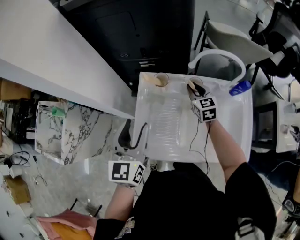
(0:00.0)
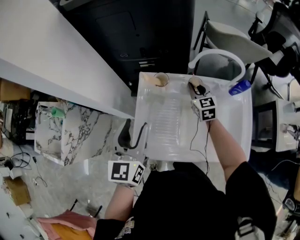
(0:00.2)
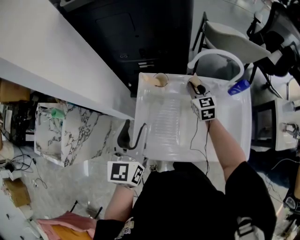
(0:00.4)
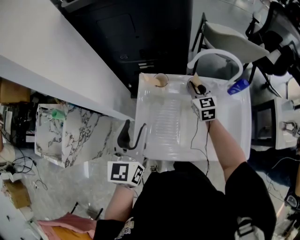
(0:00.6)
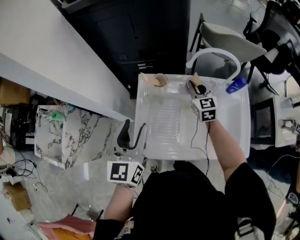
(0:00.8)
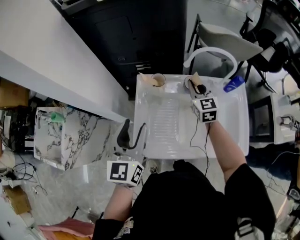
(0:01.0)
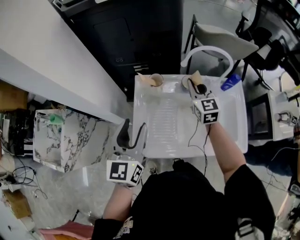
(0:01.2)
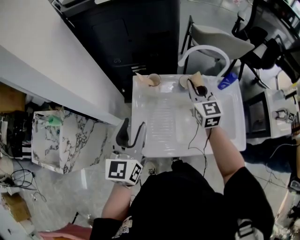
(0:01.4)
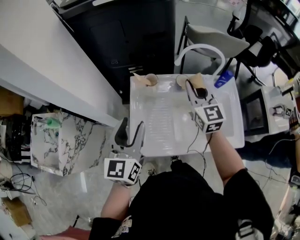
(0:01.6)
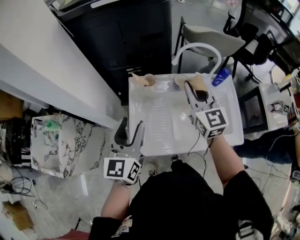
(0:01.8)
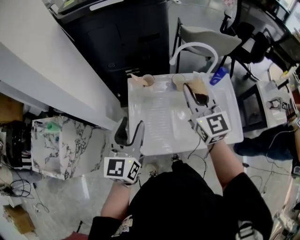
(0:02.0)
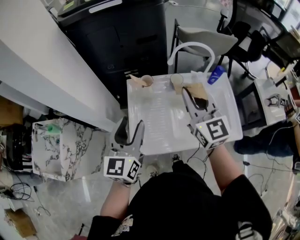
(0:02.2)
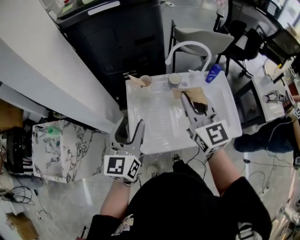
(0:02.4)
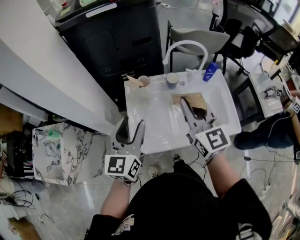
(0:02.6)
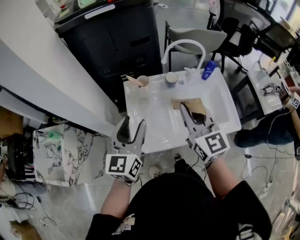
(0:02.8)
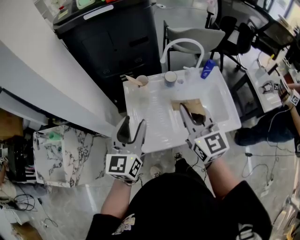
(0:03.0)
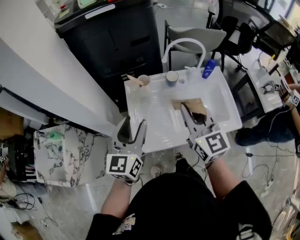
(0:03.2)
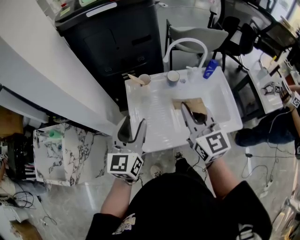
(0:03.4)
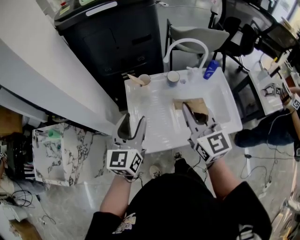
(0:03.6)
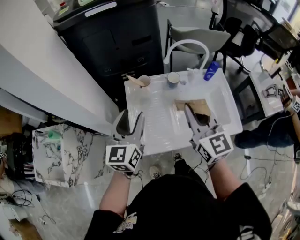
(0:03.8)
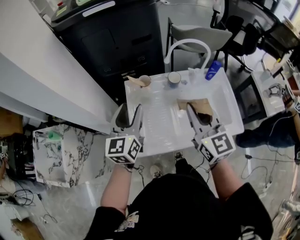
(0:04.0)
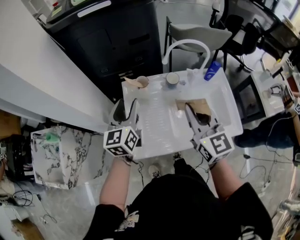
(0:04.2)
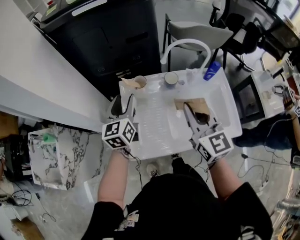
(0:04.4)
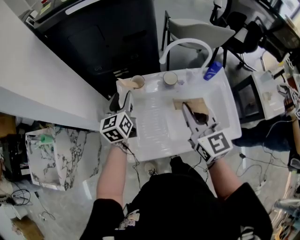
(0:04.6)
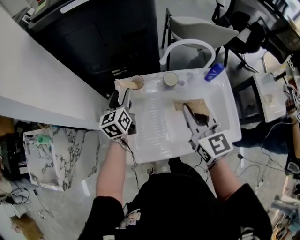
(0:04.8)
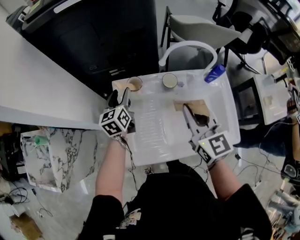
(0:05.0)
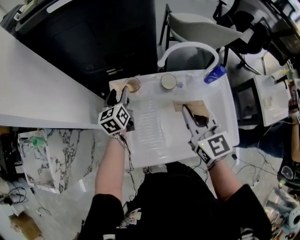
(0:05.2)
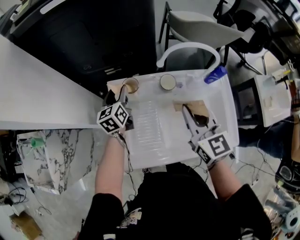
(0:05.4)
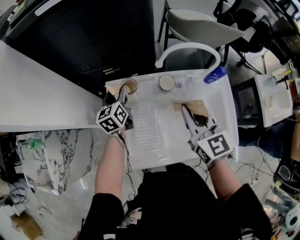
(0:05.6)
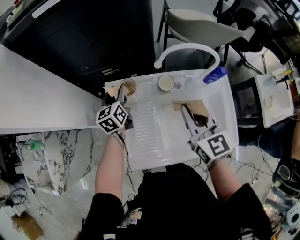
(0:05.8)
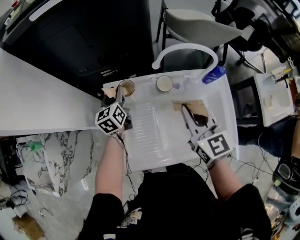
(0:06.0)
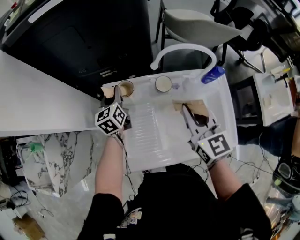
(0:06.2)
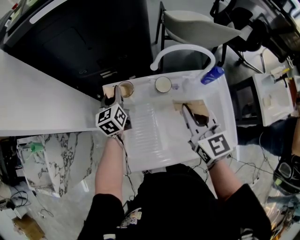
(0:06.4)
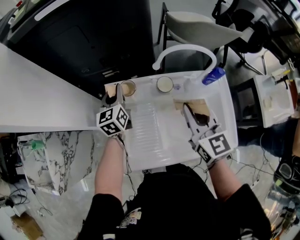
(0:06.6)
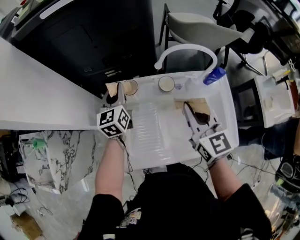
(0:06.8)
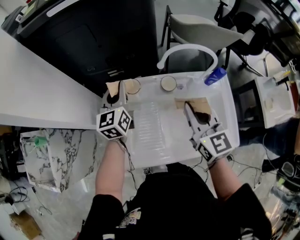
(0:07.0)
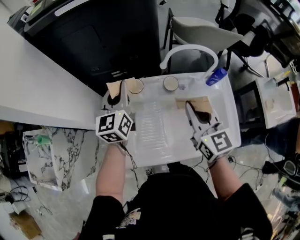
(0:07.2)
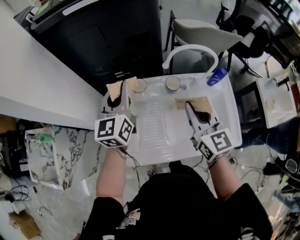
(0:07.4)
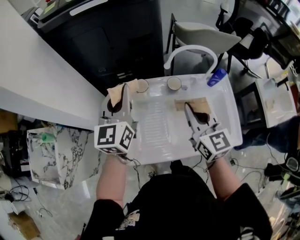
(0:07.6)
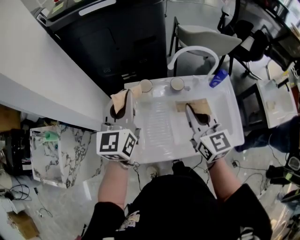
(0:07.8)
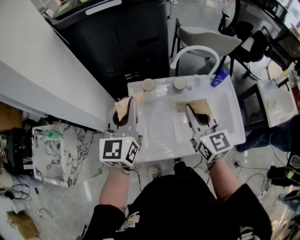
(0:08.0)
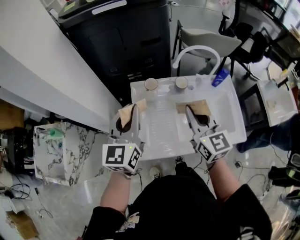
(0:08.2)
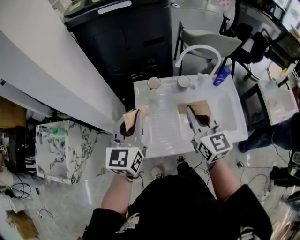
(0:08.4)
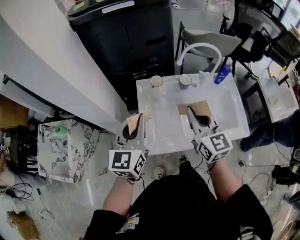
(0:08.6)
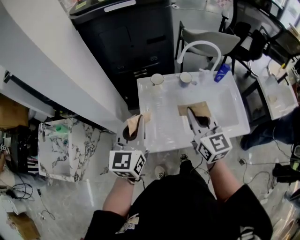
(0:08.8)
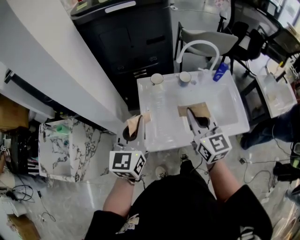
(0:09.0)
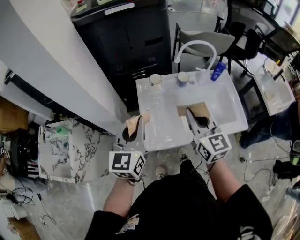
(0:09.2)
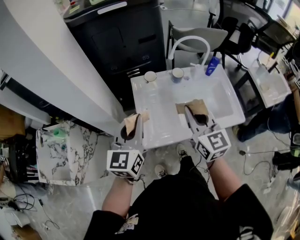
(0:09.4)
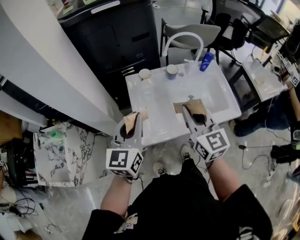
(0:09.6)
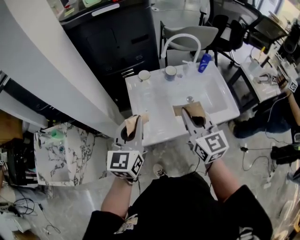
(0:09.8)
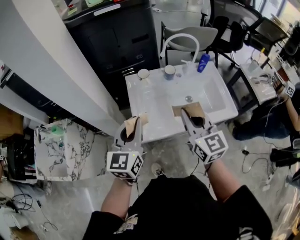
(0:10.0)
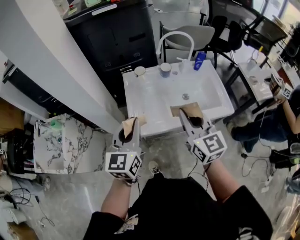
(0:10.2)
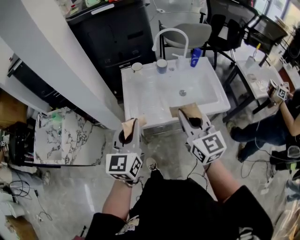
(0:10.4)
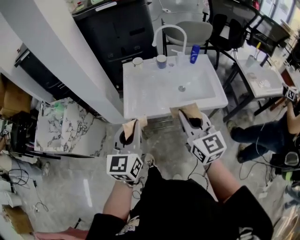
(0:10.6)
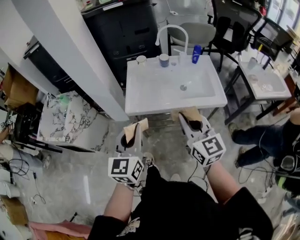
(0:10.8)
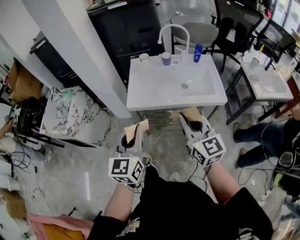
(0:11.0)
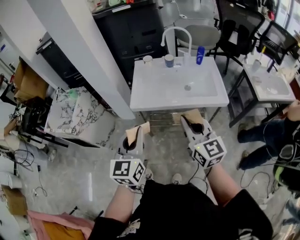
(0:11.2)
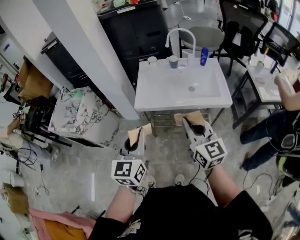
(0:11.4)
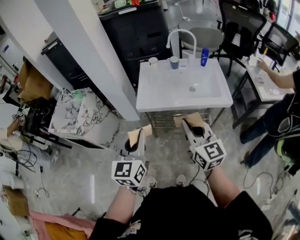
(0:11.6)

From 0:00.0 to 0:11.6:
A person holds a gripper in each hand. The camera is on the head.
From 0:00.0 to 0:01.4: The right gripper travels upward and backward by about 15 cm.
From 0:01.4 to 0:02.8: The left gripper ends up about 5 cm from where it was. Meanwhile the right gripper moves backward and upward, about 25 cm.
From 0:02.8 to 0:04.4: The left gripper shifts approximately 20 cm forward and downward. The right gripper moves forward, approximately 5 cm.
From 0:04.4 to 0:05.8: The left gripper heads forward and downward, covering roughly 20 cm. The right gripper goes roughly 10 cm forward and downward.
From 0:05.8 to 0:07.2: The left gripper moves upward, about 15 cm, turns by approximately 20 degrees, and closes up.
From 0:07.2 to 0:08.8: The right gripper travels backward and to the left by approximately 15 cm, while the left gripper goes about 25 cm backward.
From 0:08.8 to 0:10.2: Both grippers travel together backward, about 15 cm.
From 0:10.2 to 0:11.6: Both grippers travel together backward, roughly 25 cm.

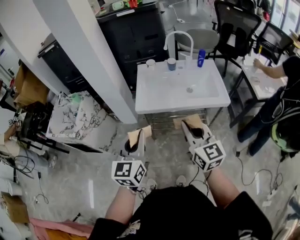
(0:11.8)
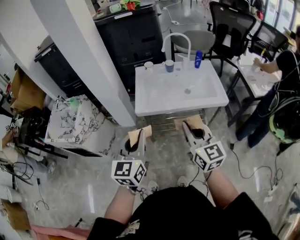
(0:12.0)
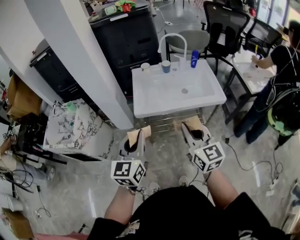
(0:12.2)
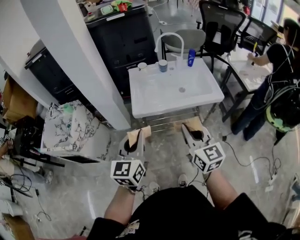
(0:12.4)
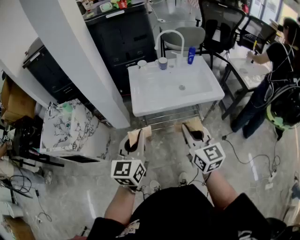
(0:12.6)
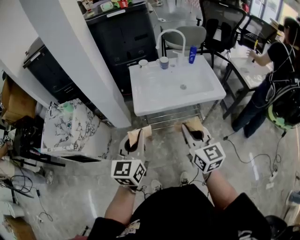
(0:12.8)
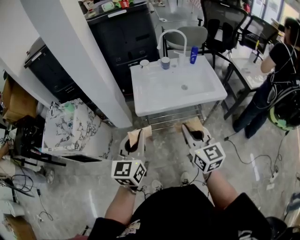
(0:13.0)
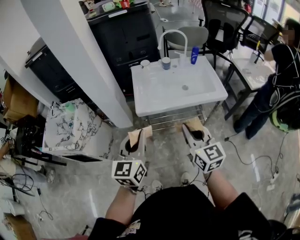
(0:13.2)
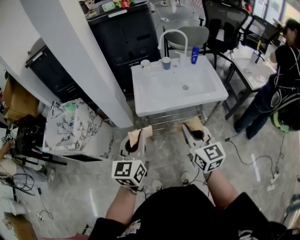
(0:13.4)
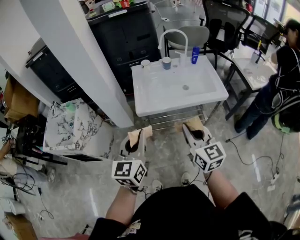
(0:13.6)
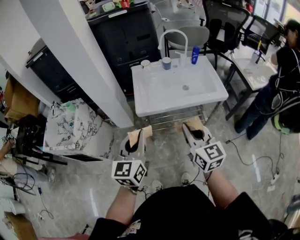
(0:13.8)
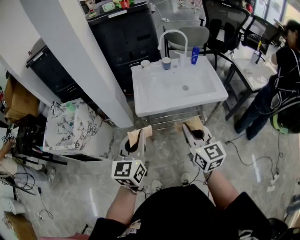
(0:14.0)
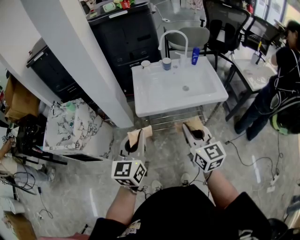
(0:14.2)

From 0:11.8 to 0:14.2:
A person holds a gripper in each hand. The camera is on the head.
From 0:11.8 to 0:13.0: The grippers both shift to the left by some 5 cm.
From 0:13.0 to 0:14.2: Both grippers stay about where they are.

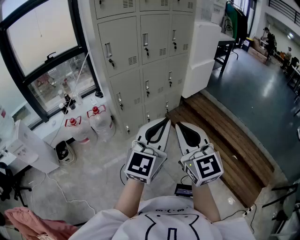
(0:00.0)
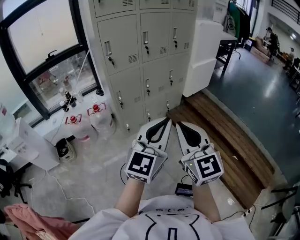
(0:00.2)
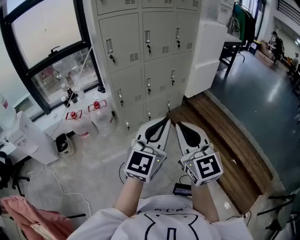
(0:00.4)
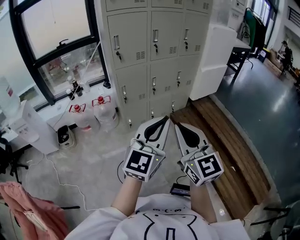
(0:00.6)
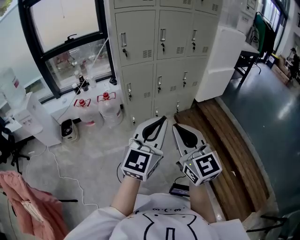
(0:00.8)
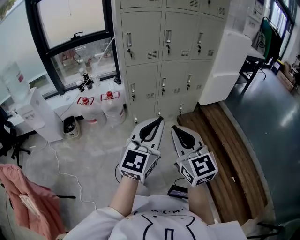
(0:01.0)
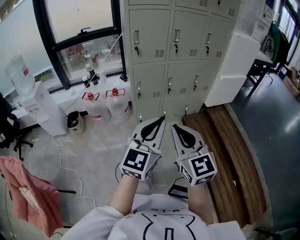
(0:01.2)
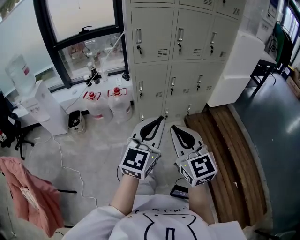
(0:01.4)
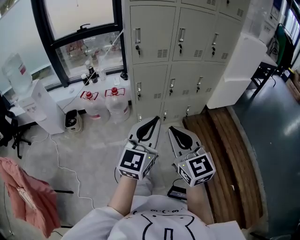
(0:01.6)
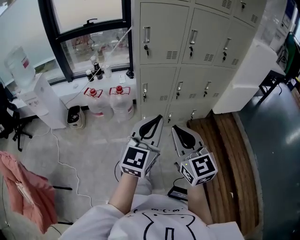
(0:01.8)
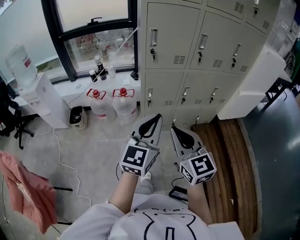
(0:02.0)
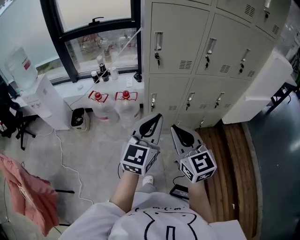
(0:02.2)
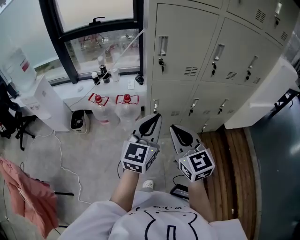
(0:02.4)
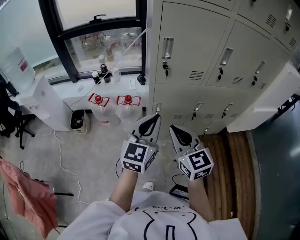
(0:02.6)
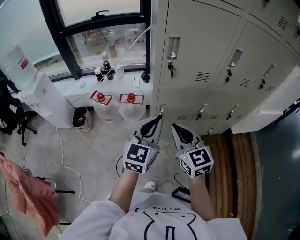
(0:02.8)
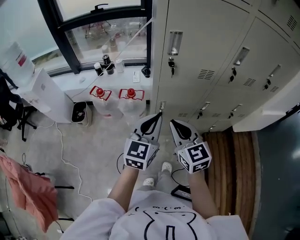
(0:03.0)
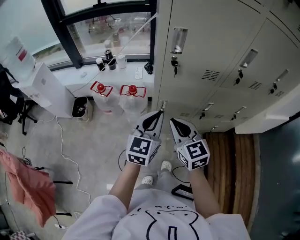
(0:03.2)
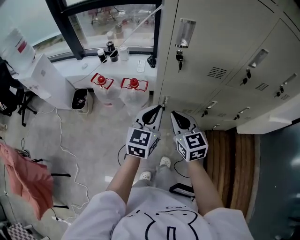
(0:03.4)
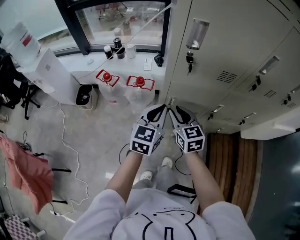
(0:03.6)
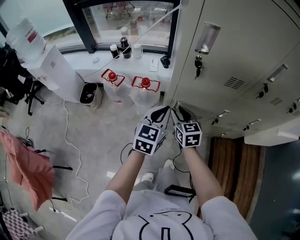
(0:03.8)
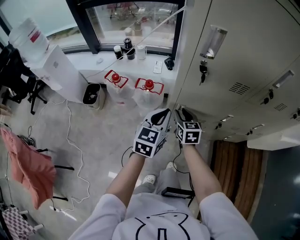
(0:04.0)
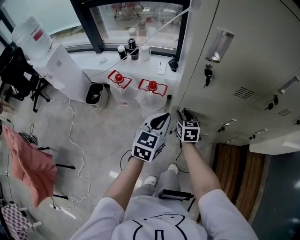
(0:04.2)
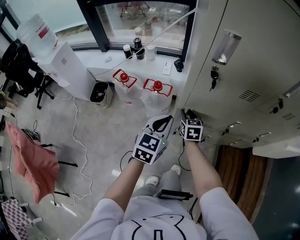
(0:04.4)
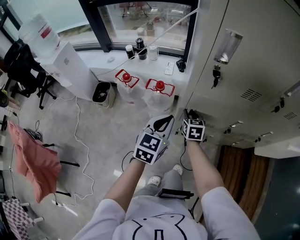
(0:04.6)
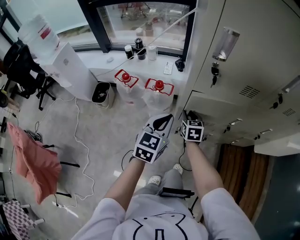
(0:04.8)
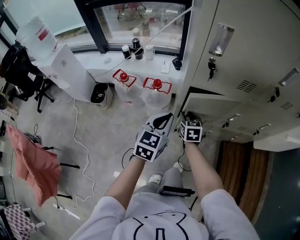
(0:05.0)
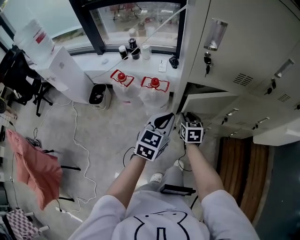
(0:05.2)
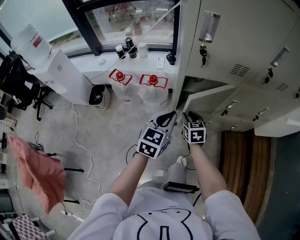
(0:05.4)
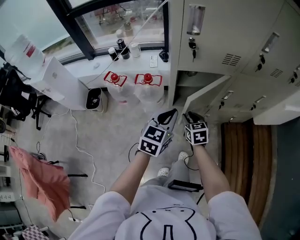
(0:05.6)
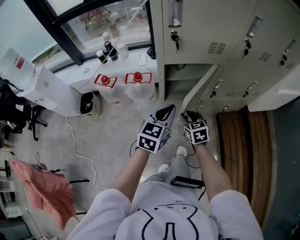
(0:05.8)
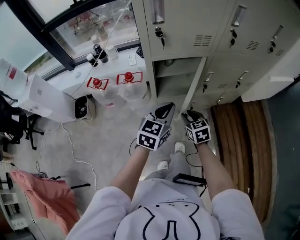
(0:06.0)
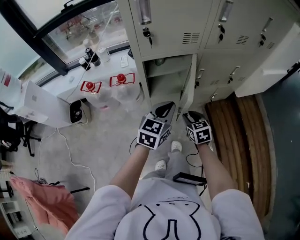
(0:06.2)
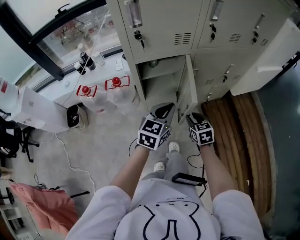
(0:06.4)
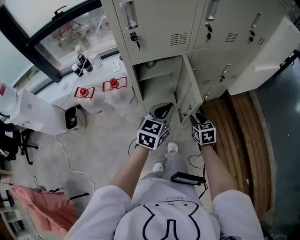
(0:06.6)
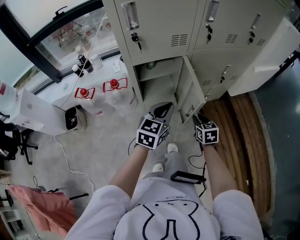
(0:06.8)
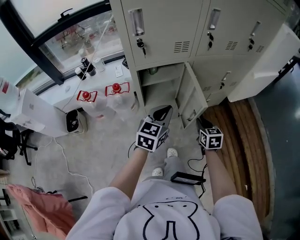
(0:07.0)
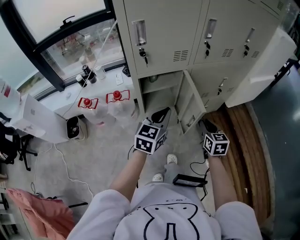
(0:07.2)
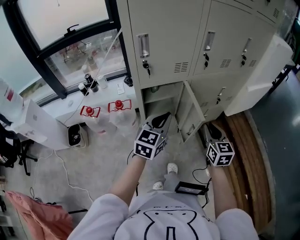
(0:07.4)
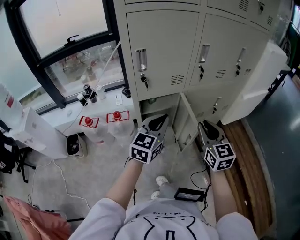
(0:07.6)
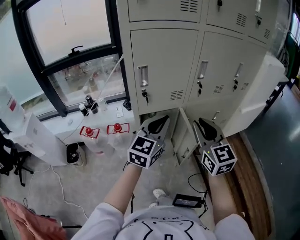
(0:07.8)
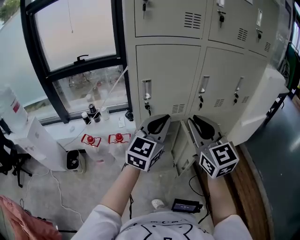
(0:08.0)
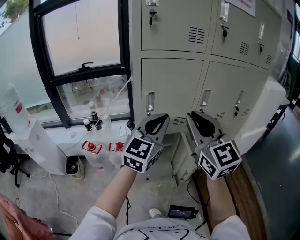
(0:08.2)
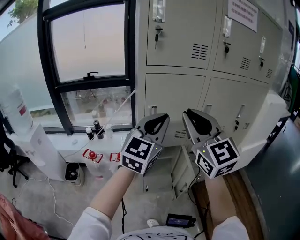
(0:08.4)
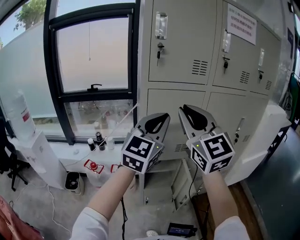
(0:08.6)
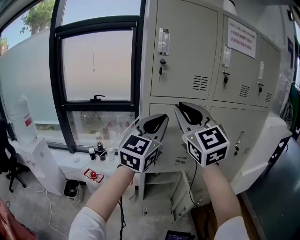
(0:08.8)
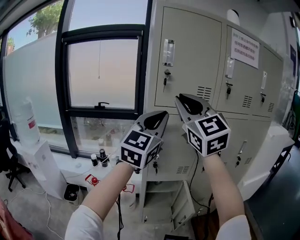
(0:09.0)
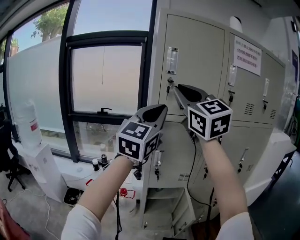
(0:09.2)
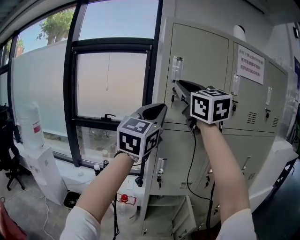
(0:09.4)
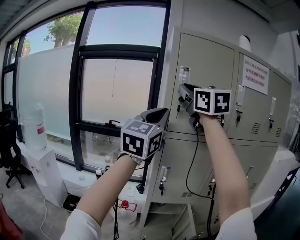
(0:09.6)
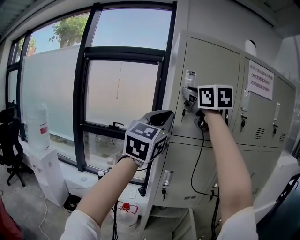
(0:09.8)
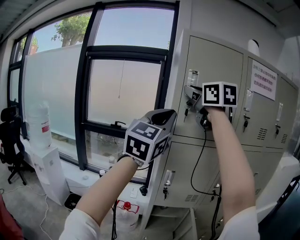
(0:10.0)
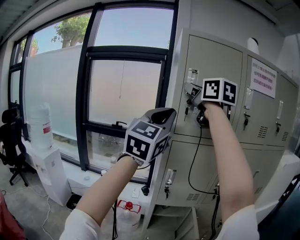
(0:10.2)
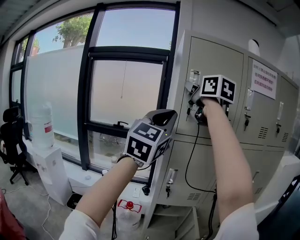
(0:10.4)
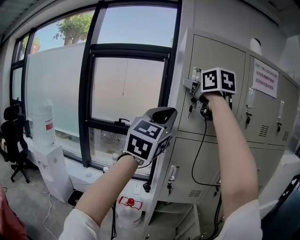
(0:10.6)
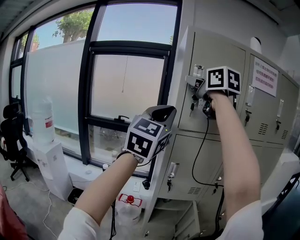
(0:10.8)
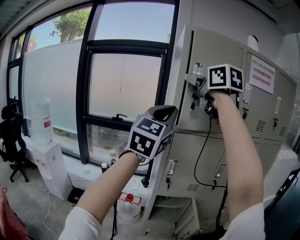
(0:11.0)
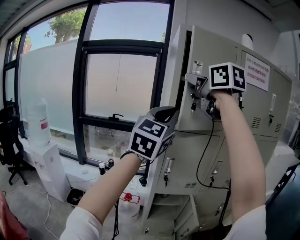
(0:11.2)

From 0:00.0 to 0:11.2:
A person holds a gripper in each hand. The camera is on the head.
From 0:00.0 to 0:01.6: Both grippers move forward and downward, roughly 10 cm. The right gripper swivels about 20 degrees. Meanwhile the left gripper swivels some 20 degrees.
From 0:01.6 to 0:03.2: Both grippers move forward, some 40 cm.
From 0:03.2 to 0:04.8: The left gripper shifts approximately 10 cm downward and to the left; the right gripper shifts about 25 cm downward and forward, turns by approximately 20 degrees, and opens its fingers.
From 0:04.8 to 0:06.4: The two grippers go approximately 25 cm to the right and backward. The left gripper turns by roughly 30 degrees.
From 0:06.4 to 0:08.0: The left gripper goes approximately 30 cm upward, and rotates roughly 30 degrees. Meanwhile the right gripper moves upward, roughly 50 cm, and tilts its fingers some 40 degrees upward.
From 0:08.0 to 0:09.6: The right gripper shifts roughly 40 cm upward and forward, while the left gripper is displaced upward by some 35 cm, and changes its angle by roughly 20 degrees.
From 0:09.6 to 0:11.2: The grippers make only small movements.
